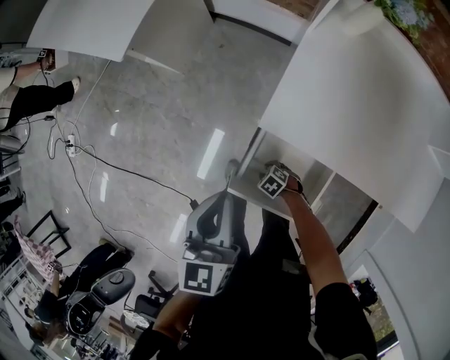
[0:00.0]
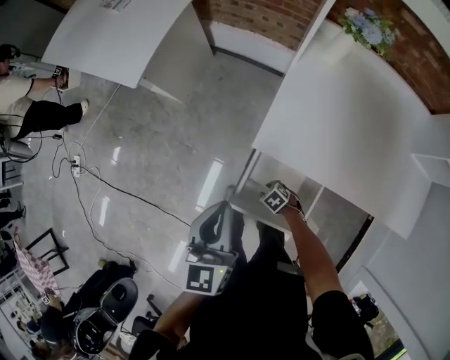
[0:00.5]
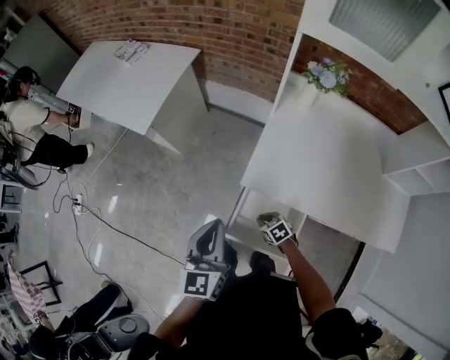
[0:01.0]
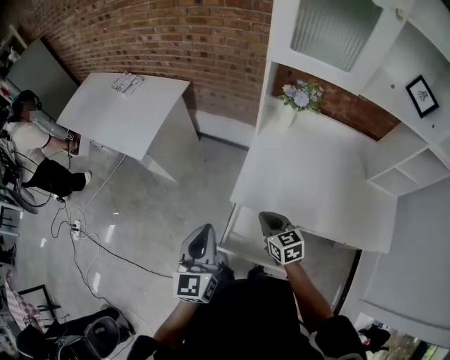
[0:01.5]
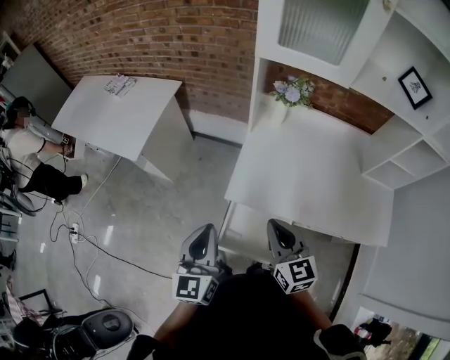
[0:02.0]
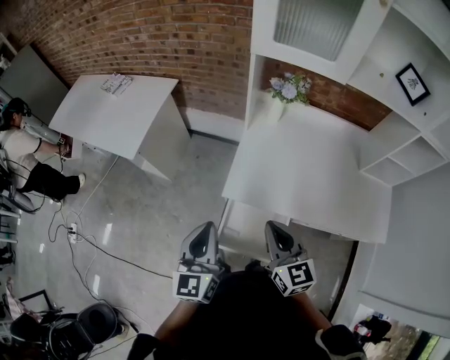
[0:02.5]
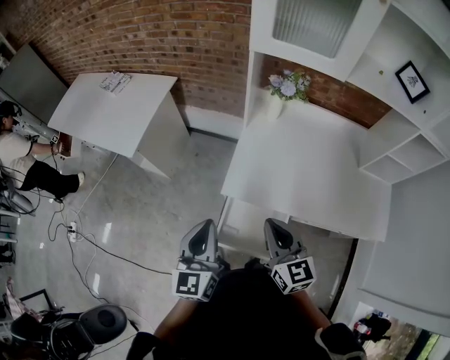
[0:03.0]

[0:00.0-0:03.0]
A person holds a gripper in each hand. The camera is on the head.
0:00.0 to 0:01.5: The right gripper moves upward, some 50 cm, points its fingers roughly 40 degrees further upward, and closes its fingers, while the left gripper travels upward by approximately 20 cm.
0:01.5 to 0:03.0: The right gripper travels upward and backward by approximately 15 cm, and rotates roughly 20 degrees.

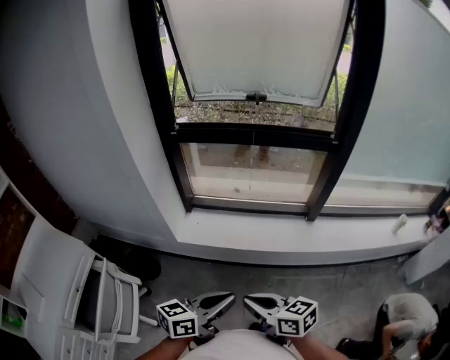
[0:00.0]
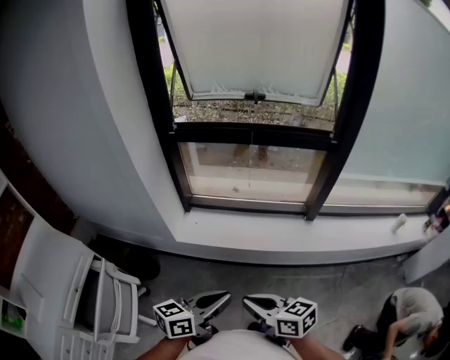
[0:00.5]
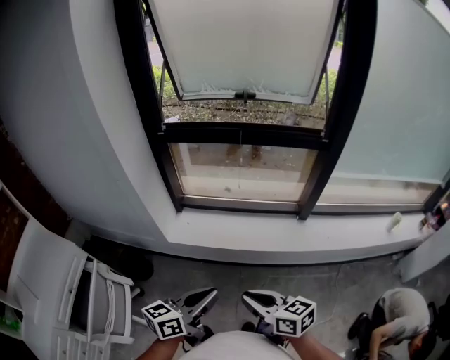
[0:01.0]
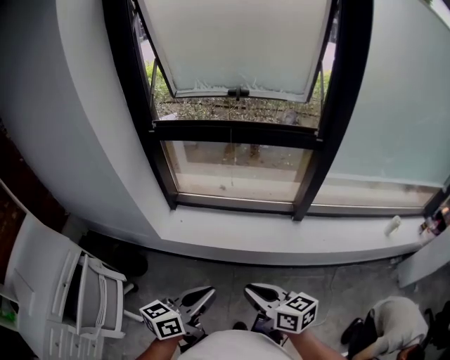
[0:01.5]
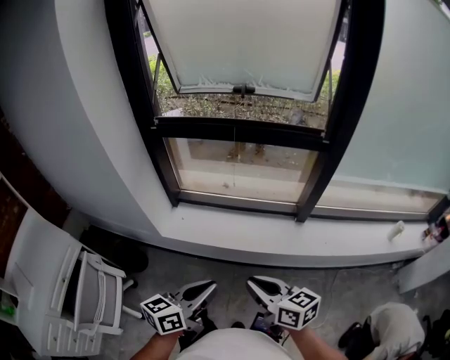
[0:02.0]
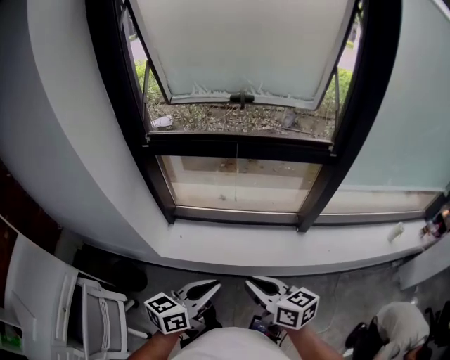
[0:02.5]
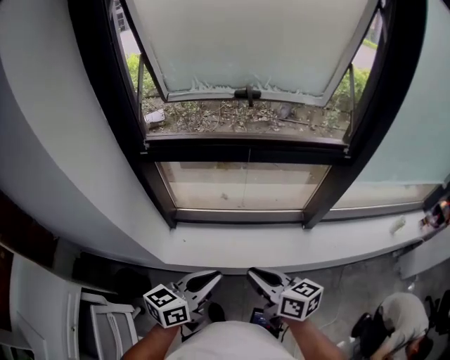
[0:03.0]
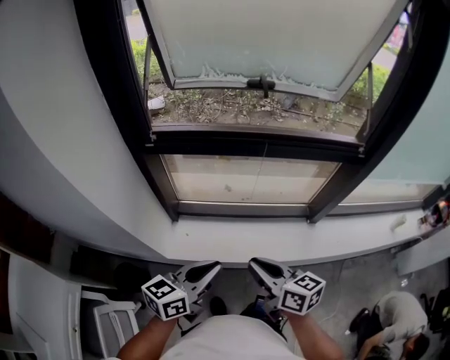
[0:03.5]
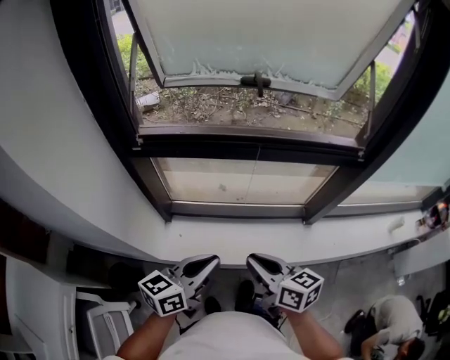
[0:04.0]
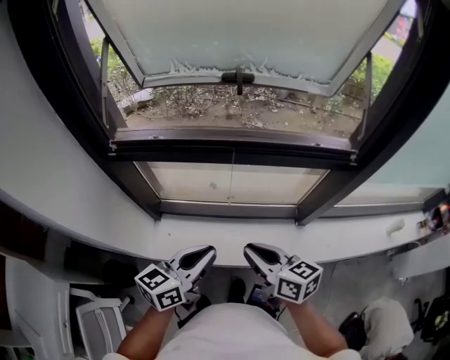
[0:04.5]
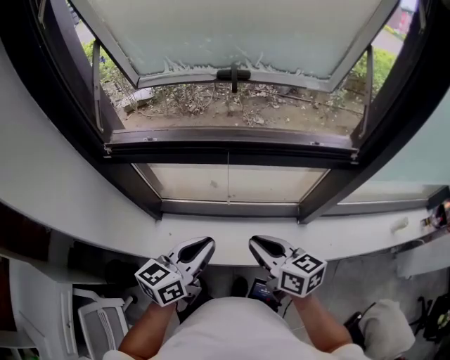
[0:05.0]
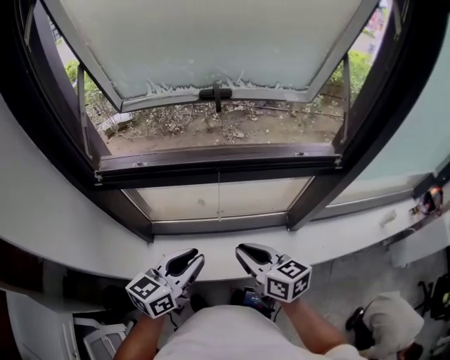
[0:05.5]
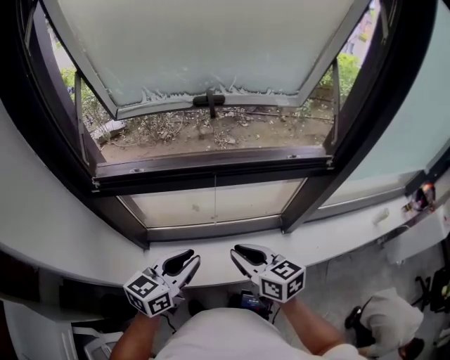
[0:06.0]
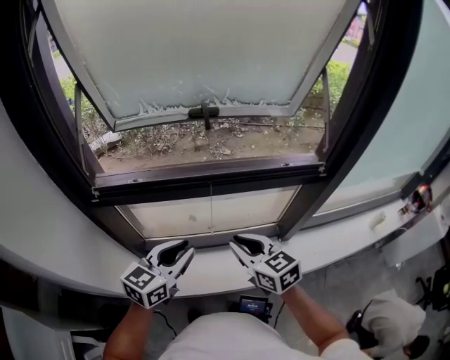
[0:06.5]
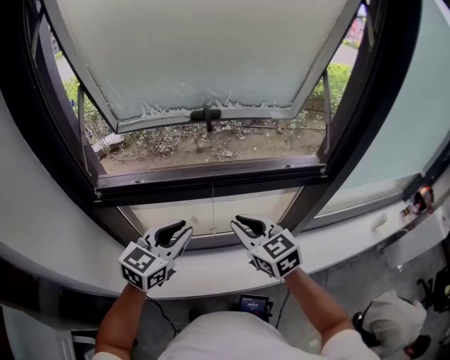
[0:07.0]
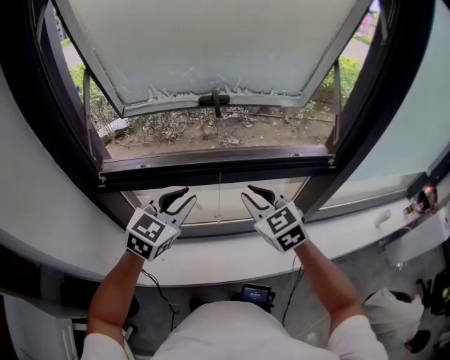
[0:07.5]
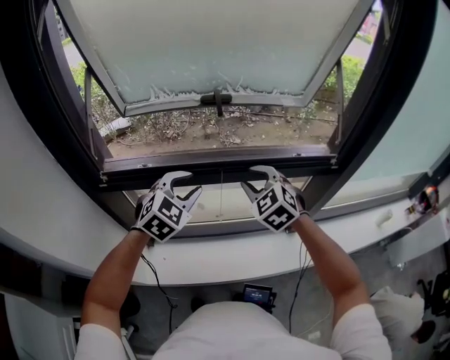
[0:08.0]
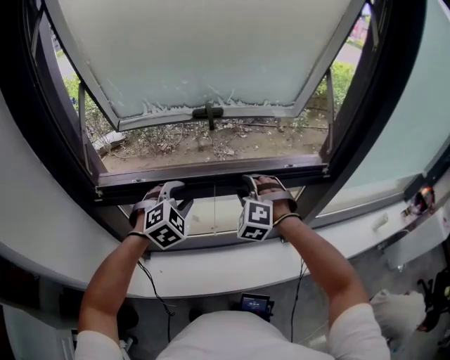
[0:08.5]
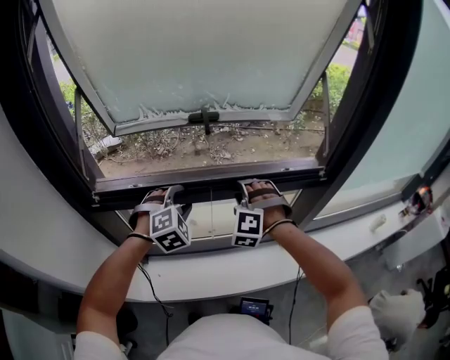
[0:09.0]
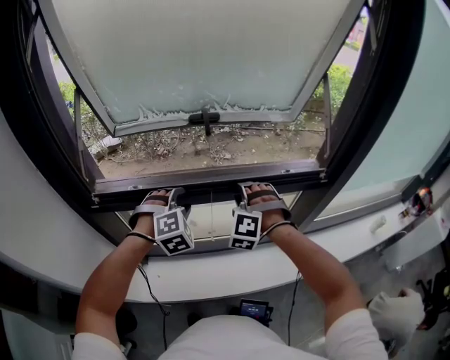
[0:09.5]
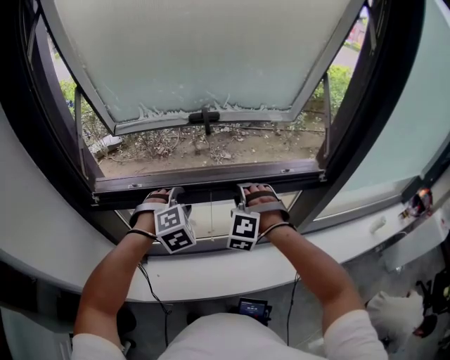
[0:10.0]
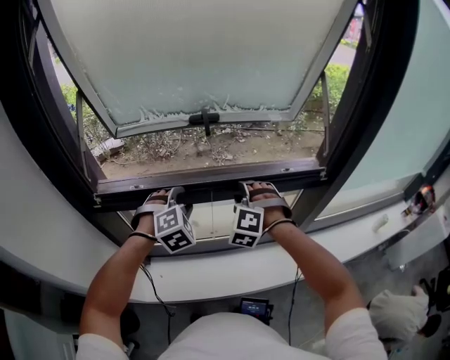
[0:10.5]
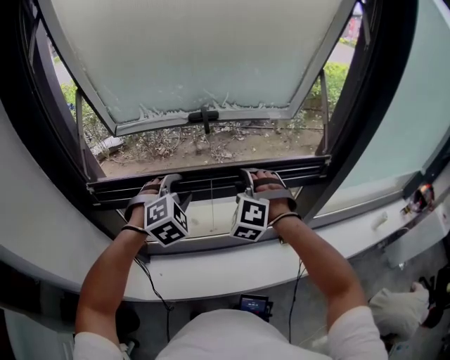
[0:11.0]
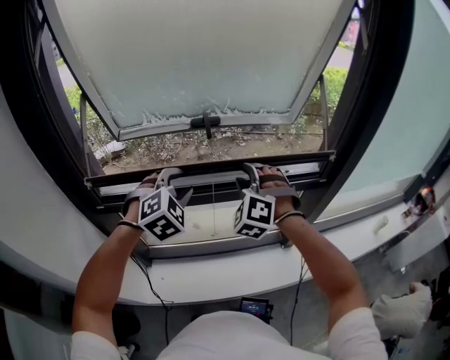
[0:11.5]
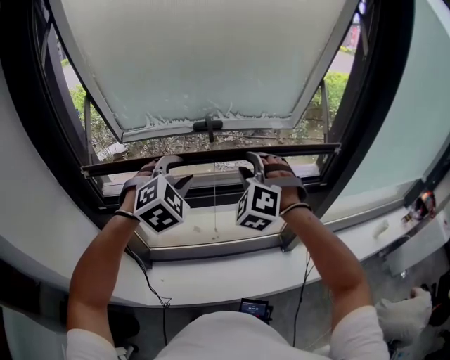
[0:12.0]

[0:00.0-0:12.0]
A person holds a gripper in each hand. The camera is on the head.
0:00.0 to 0:02.0: The left gripper shifts approximately 10 cm forward and to the right; the right gripper moves to the right and forward, about 15 cm.
0:02.0 to 0:04.0: The two grippers go some 30 cm forward and to the left.
0:04.0 to 0:06.0: The right gripper shifts approximately 10 cm forward and to the right; the left gripper travels forward by roughly 10 cm.
0:06.0 to 0:08.0: Both grippers travel together forward, roughly 15 cm. The right gripper rolls counterclockwise, seen from behind, by some 50 degrees. Meanwhile the left gripper rolls clockwise, seen from behind, by approximately 50 degrees.
0:08.0 to 0:10.0: The right gripper swivels approximately 40 degrees. Meanwhile the left gripper ends up approximately 5 cm from where it was, and swivels approximately 30 degrees.
0:10.0 to 0:12.0: The grippers both shift upward by about 15 cm.

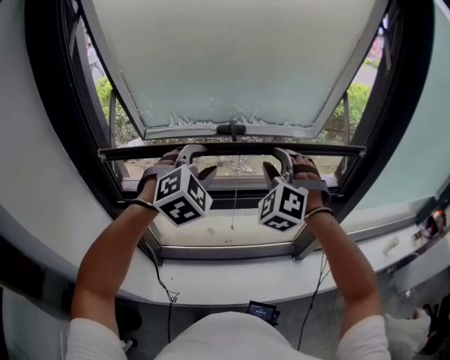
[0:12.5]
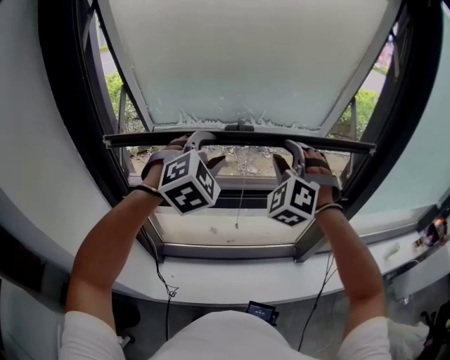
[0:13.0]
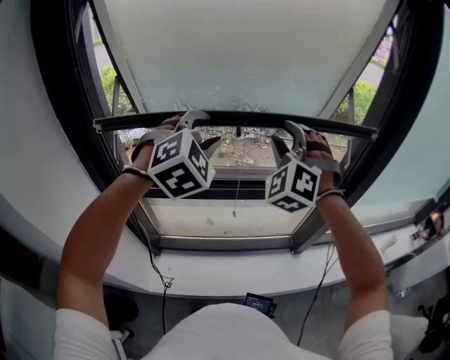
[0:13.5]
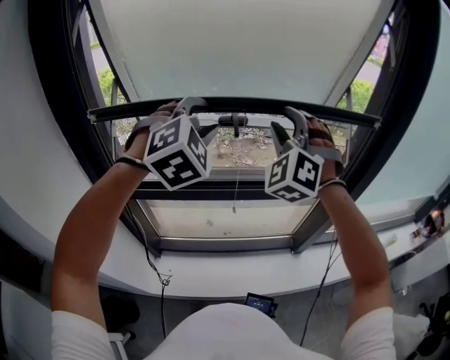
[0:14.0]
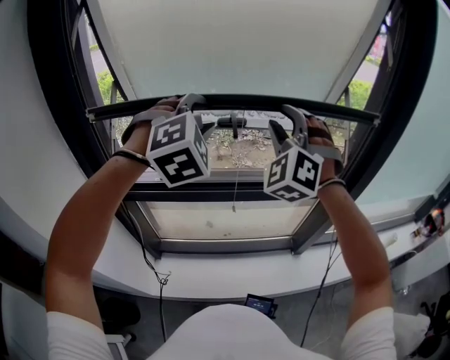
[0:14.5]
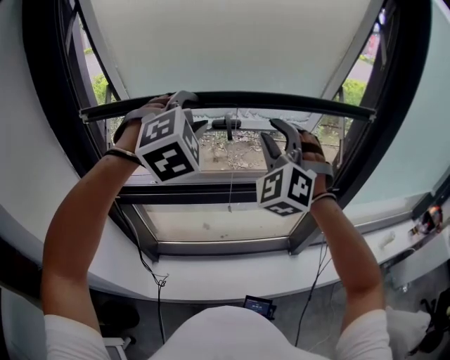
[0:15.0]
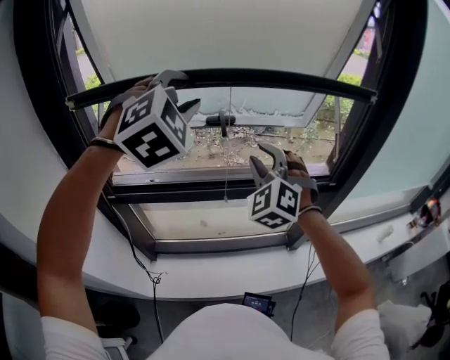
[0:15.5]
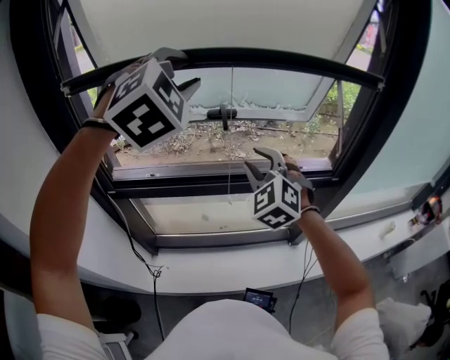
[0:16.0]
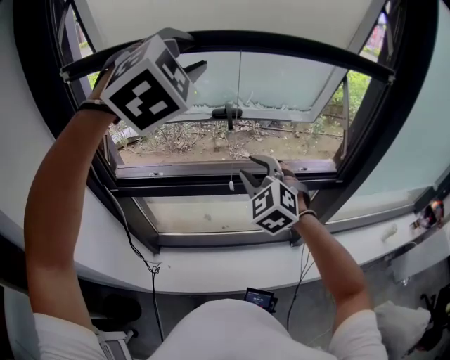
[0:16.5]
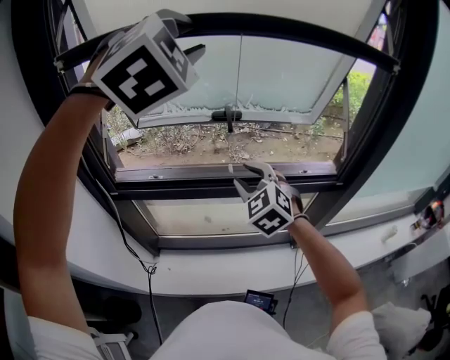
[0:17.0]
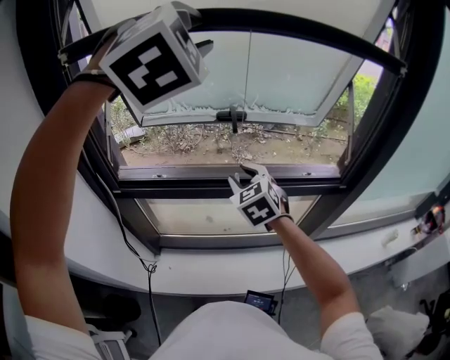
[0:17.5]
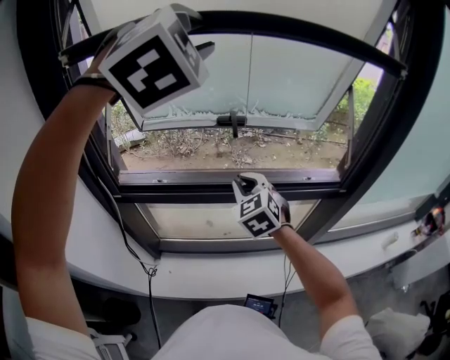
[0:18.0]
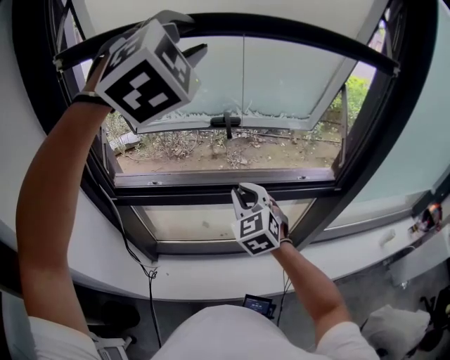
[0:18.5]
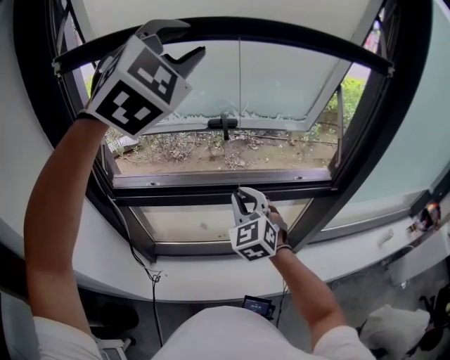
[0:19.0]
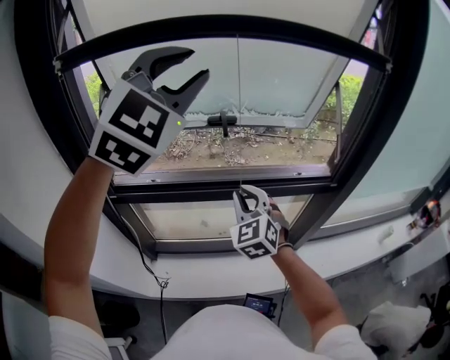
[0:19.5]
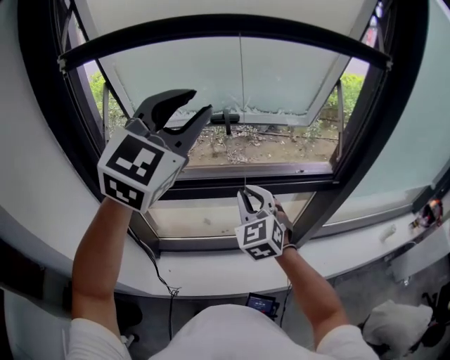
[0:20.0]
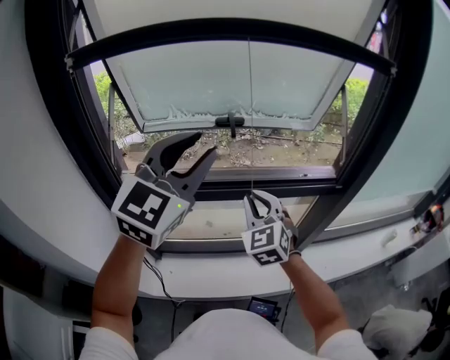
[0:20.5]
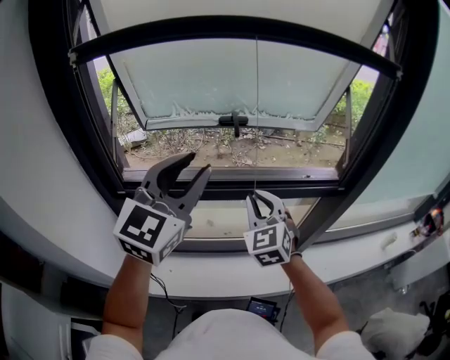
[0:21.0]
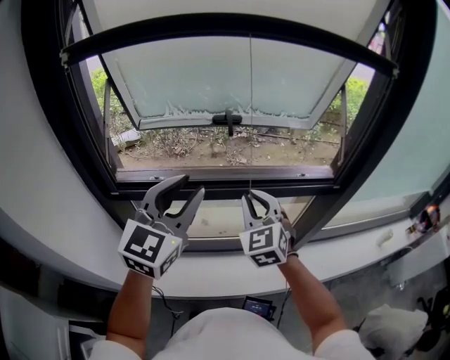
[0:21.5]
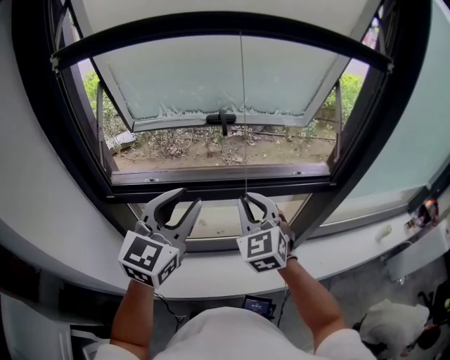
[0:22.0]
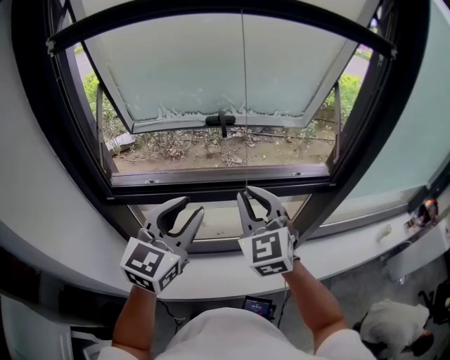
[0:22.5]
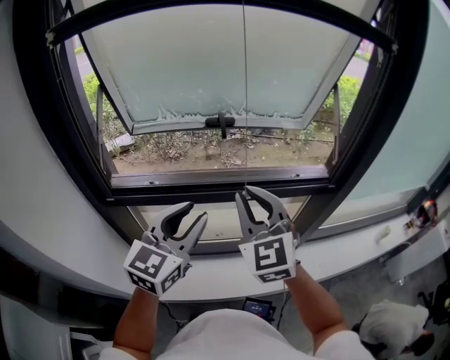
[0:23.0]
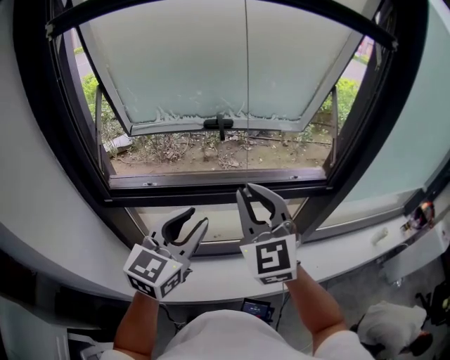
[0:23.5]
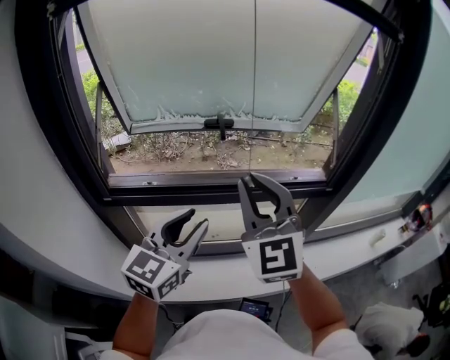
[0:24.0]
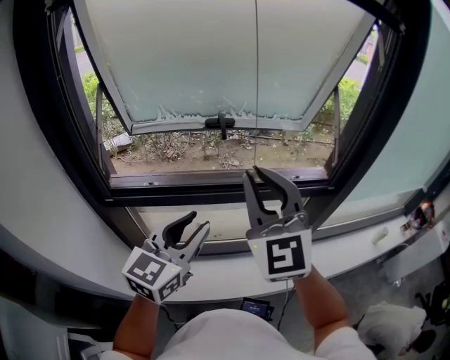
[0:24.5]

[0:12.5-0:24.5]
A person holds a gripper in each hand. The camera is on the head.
0:12.5 to 0:14.5: Both grippers travel together upward, about 10 cm.
0:14.5 to 0:16.5: The right gripper travels downward by about 15 cm, and turns by approximately 30 degrees. The left gripper is displaced upward by roughly 10 cm.
0:16.5 to 0:18.5: The right gripper moves some 5 cm, and closes its fingers, while the left gripper travels upward by about 5 cm.
0:18.5 to 0:20.5: The left gripper is displaced downward and backward by approximately 20 cm, and rolls counterclockwise, seen from behind, by about 40 degrees.
0:20.5 to 0:22.5: The left gripper heads downward, covering some 15 cm, while the right gripper heads upward, covering some 5 cm.
0:22.5 to 0:24.5: The right gripper goes approximately 10 cm upward.
